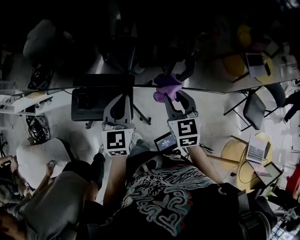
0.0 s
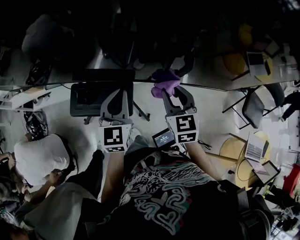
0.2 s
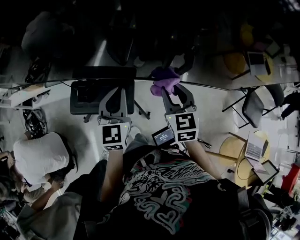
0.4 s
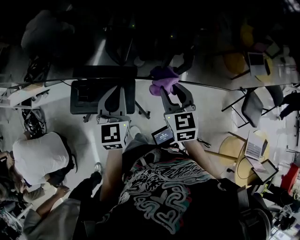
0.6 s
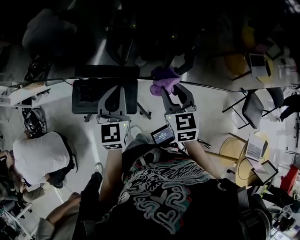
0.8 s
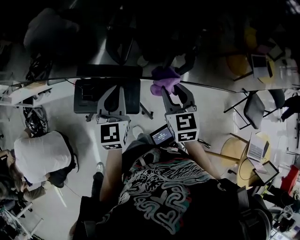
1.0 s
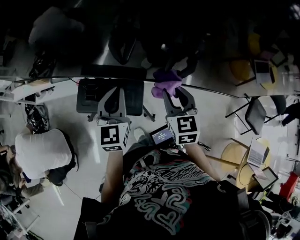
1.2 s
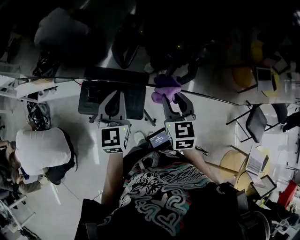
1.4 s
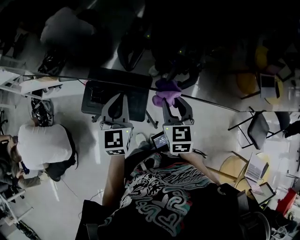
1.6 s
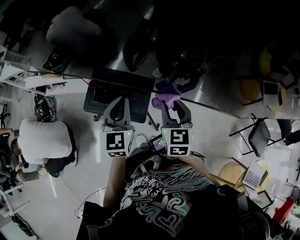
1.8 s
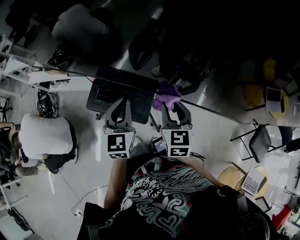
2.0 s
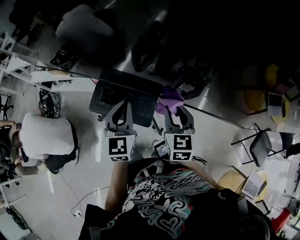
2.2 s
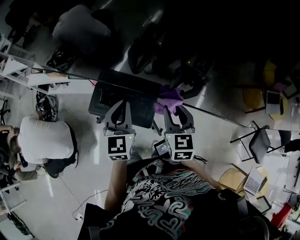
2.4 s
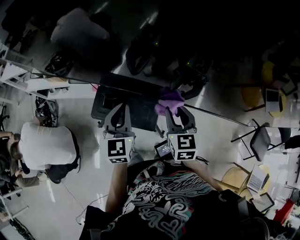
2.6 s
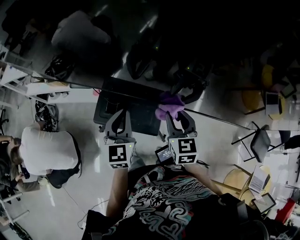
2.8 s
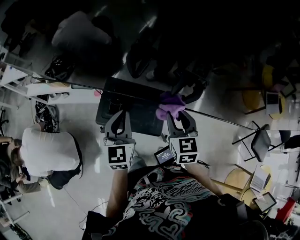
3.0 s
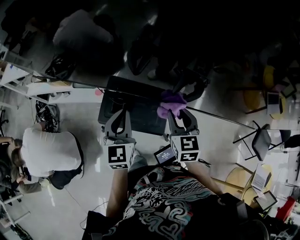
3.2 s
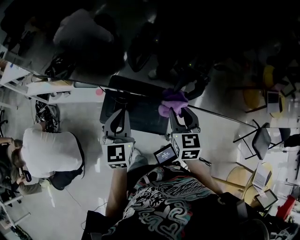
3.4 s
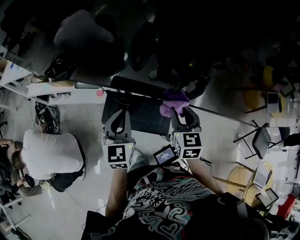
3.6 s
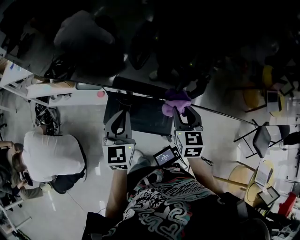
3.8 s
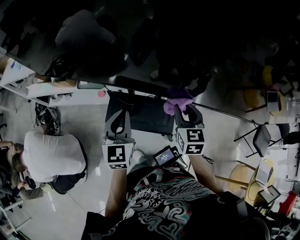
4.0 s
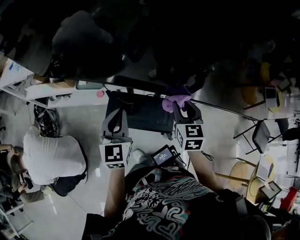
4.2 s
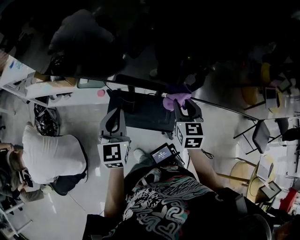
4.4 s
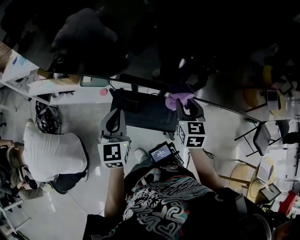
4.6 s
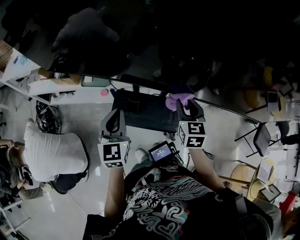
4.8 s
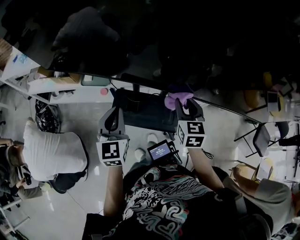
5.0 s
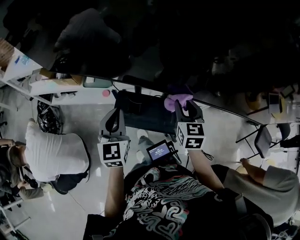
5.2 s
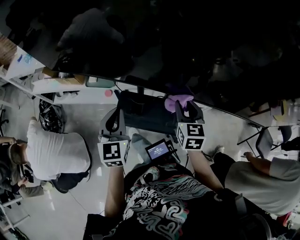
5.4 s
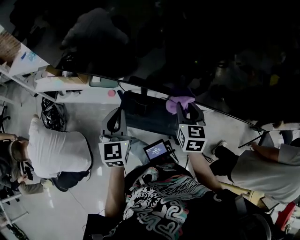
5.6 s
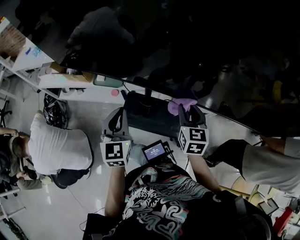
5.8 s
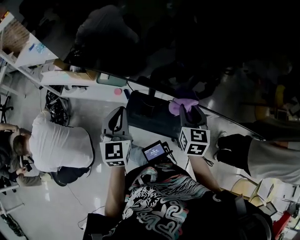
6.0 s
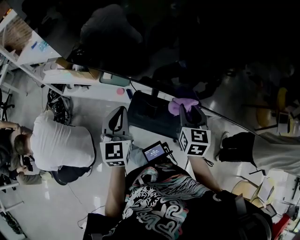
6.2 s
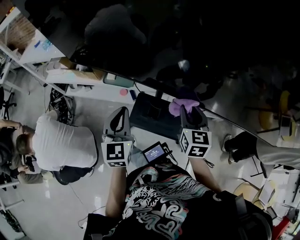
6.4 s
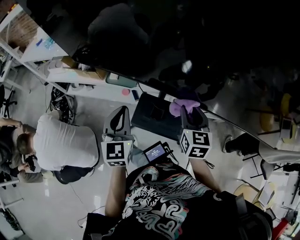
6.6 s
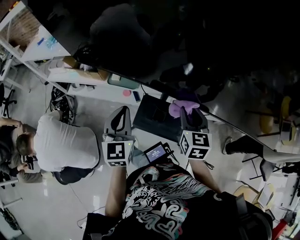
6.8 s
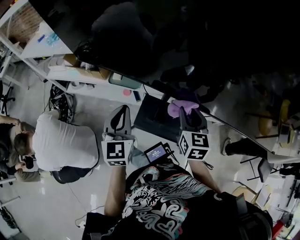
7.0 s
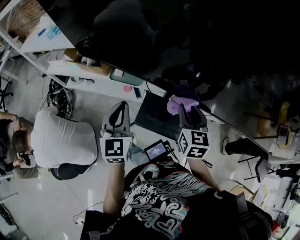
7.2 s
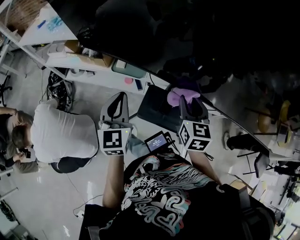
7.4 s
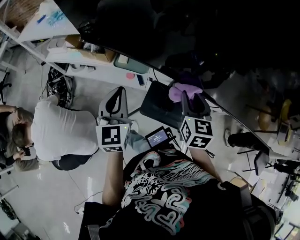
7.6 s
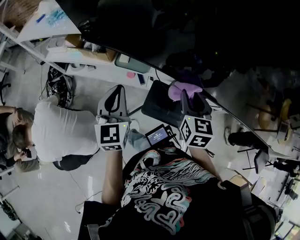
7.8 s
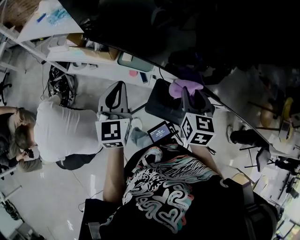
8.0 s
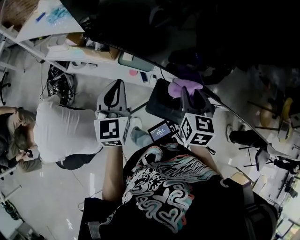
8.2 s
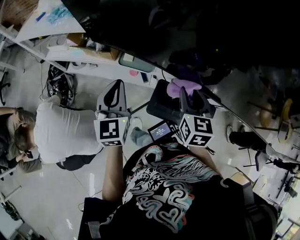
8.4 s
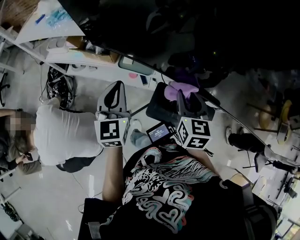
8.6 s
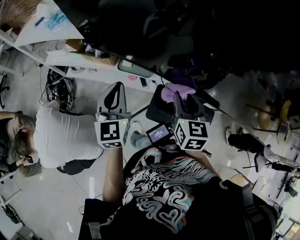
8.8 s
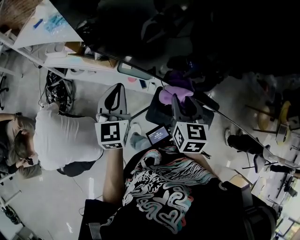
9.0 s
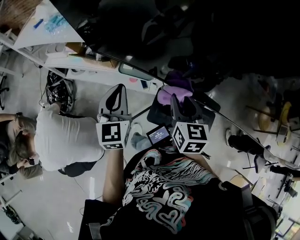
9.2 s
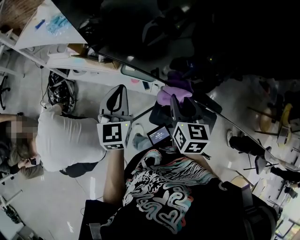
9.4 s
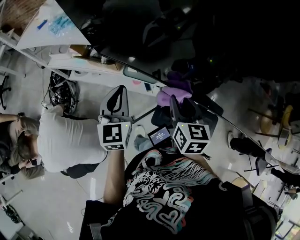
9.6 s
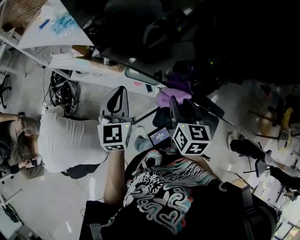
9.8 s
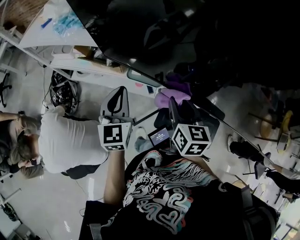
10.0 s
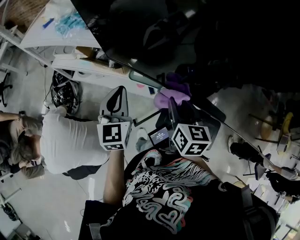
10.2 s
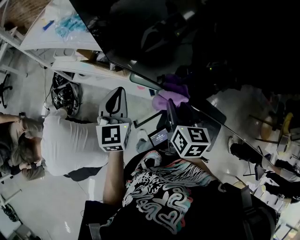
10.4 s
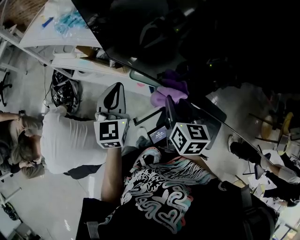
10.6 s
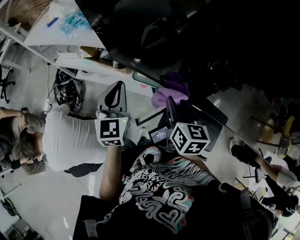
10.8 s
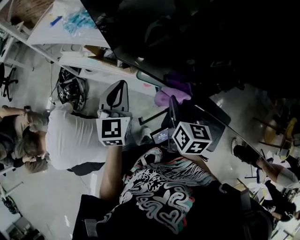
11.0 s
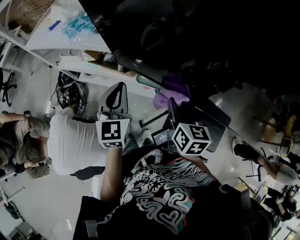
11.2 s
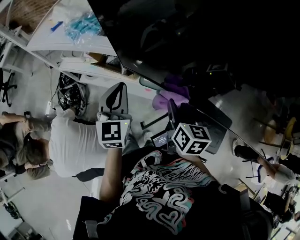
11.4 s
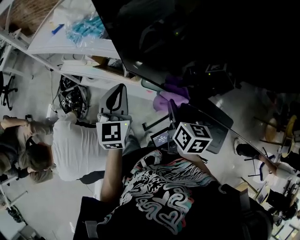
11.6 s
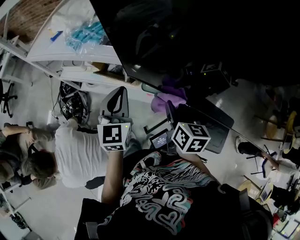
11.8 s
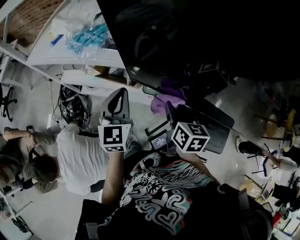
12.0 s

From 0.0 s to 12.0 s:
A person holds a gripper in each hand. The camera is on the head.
From 0.0 s to 1.6 s: Both grippers move to the left, about 10 cm.
From 1.6 s to 3.0 s: Both grippers move to the left, roughly 15 cm.
From 3.0 s to 4.4 s: The left gripper travels to the left by some 15 cm, while the right gripper is displaced to the left by roughly 10 cm.
From 4.4 s to 6.0 s: Both grippers travel together to the left, roughly 10 cm.
From 6.0 s to 7.6 s: Both grippers travel together to the left, about 15 cm.
From 7.6 s to 9.0 s: The left gripper is displaced forward and to the left by some 10 cm. The right gripper heads to the left, covering approximately 10 cm.
From 9.0 s to 10.4 s: The grippers both shift to the left and forward by roughly 10 cm.
From 10.4 s to 12.0 s: Both grippers move to the left and forward, approximately 10 cm.

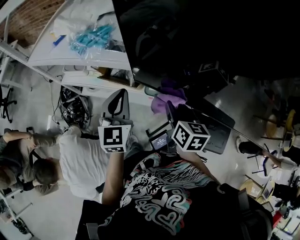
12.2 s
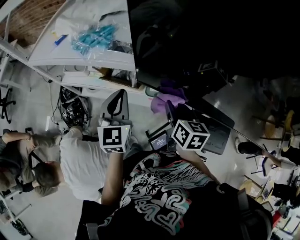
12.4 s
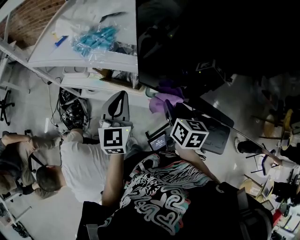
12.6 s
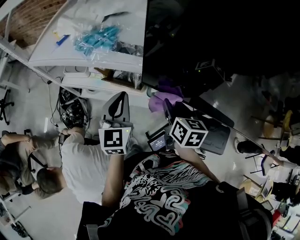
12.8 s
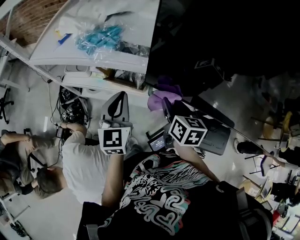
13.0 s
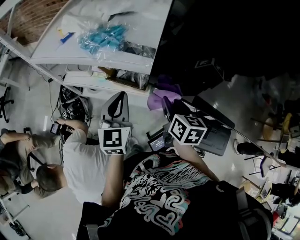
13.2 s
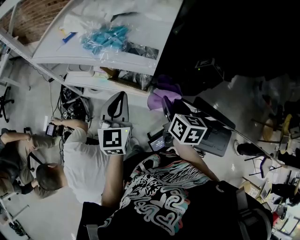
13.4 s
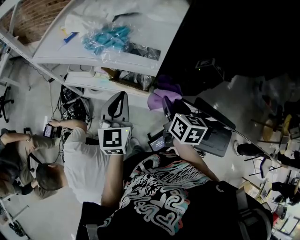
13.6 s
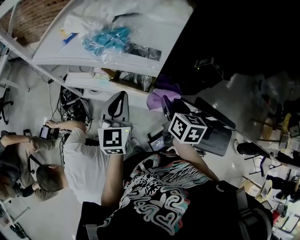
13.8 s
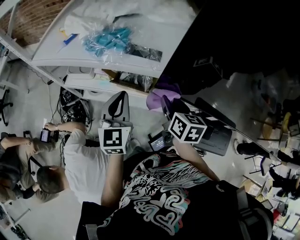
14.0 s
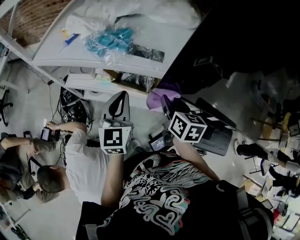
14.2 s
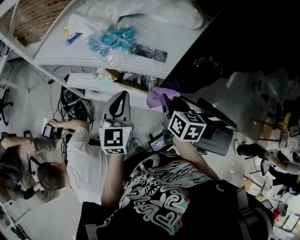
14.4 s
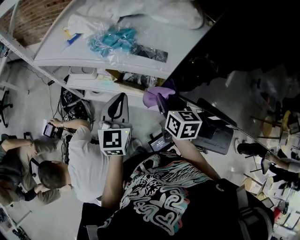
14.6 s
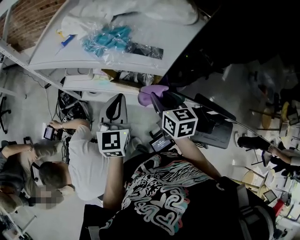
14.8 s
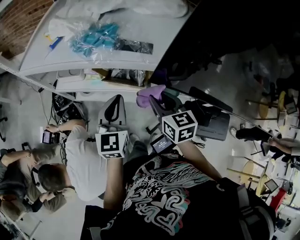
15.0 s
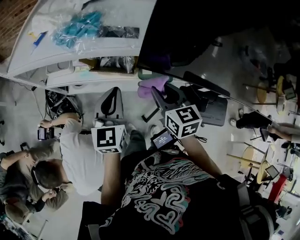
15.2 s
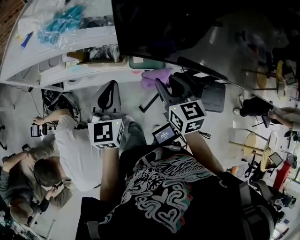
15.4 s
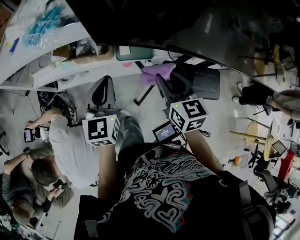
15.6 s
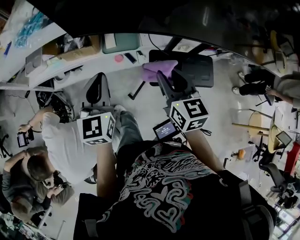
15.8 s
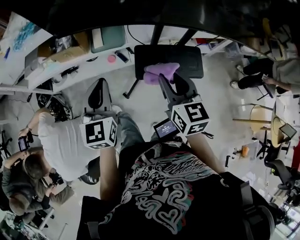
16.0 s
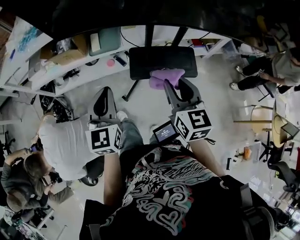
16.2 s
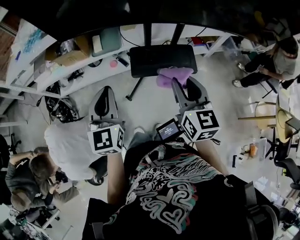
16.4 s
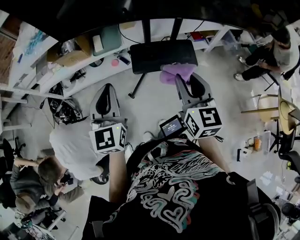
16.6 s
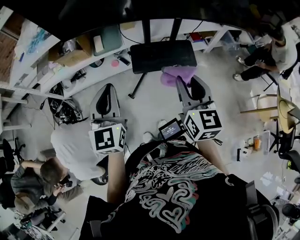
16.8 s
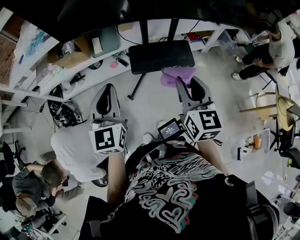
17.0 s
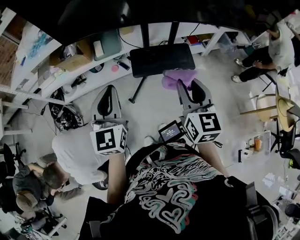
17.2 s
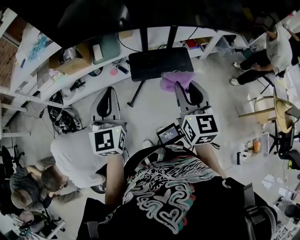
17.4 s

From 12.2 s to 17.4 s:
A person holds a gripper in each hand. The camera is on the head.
From 12.2 s to 14.0 s: Both grippers travel together to the left, roughly 10 cm.
From 14.0 s to 15.6 s: The right gripper shifts approximately 20 cm backward and to the right, while the left gripper travels to the right and backward by about 15 cm.
From 15.6 s to 17.4 s: The two grippers travel together, backward and to the right, approximately 40 cm. The right gripper swivels about 20 degrees.

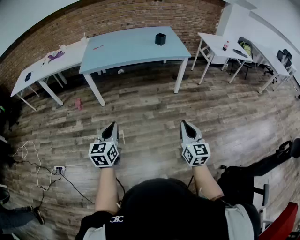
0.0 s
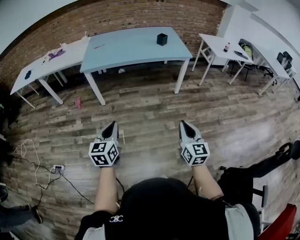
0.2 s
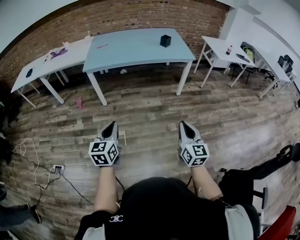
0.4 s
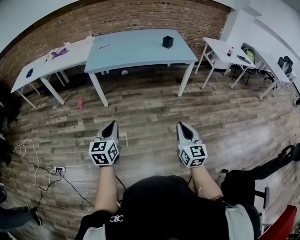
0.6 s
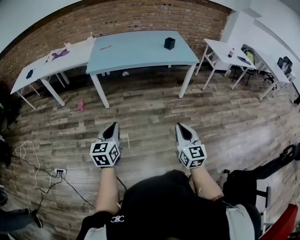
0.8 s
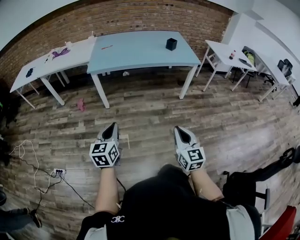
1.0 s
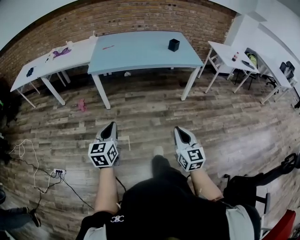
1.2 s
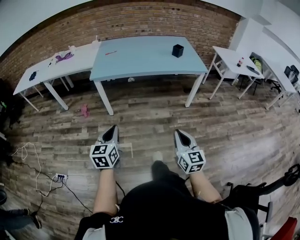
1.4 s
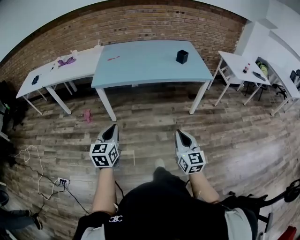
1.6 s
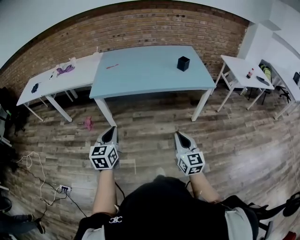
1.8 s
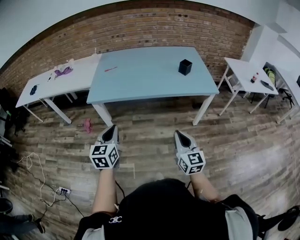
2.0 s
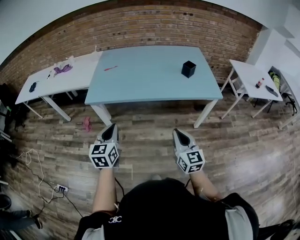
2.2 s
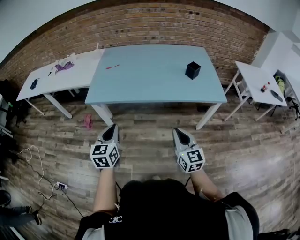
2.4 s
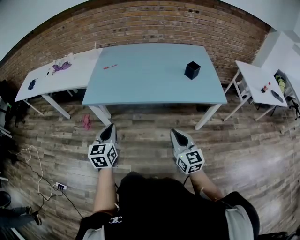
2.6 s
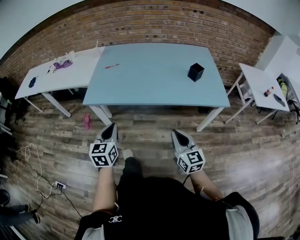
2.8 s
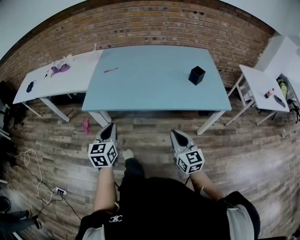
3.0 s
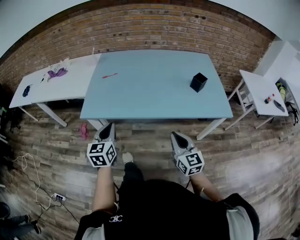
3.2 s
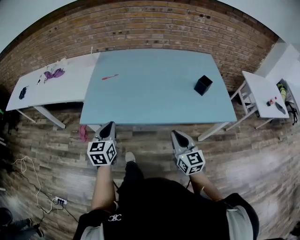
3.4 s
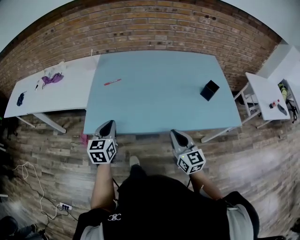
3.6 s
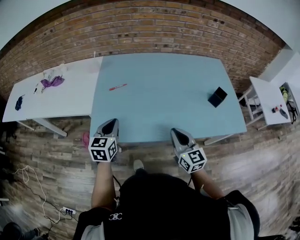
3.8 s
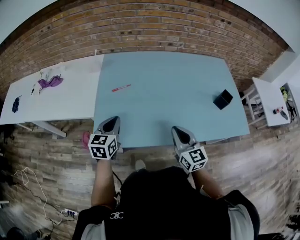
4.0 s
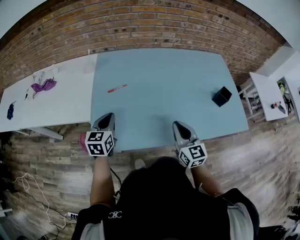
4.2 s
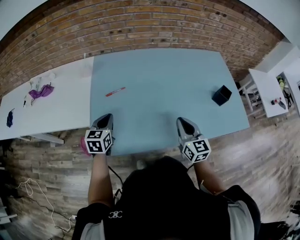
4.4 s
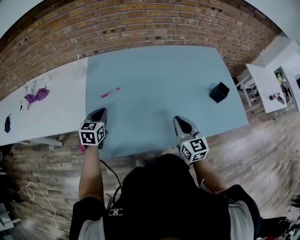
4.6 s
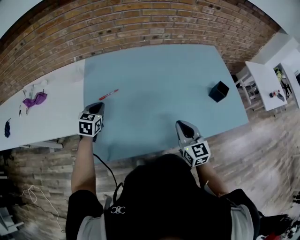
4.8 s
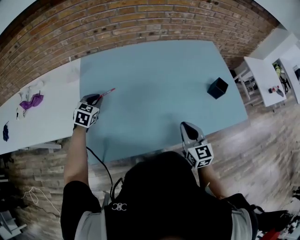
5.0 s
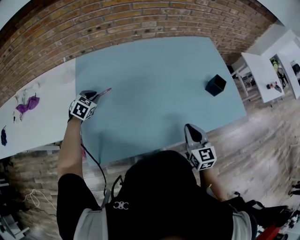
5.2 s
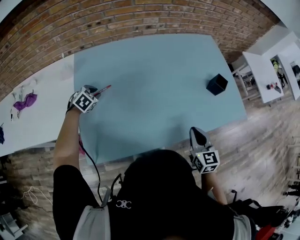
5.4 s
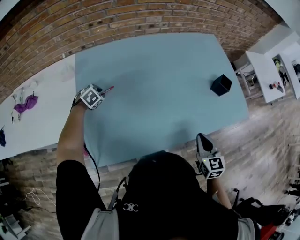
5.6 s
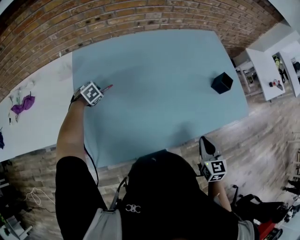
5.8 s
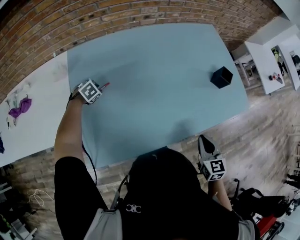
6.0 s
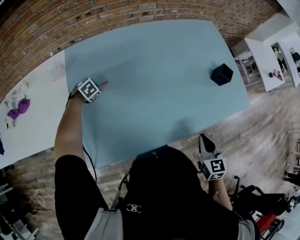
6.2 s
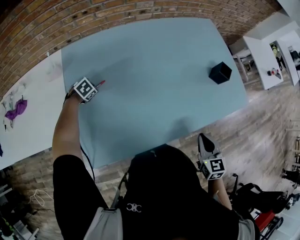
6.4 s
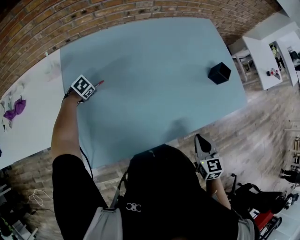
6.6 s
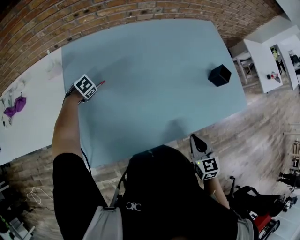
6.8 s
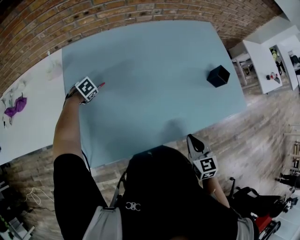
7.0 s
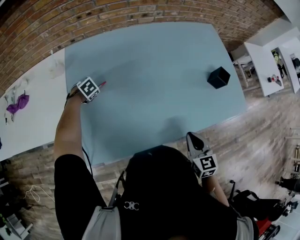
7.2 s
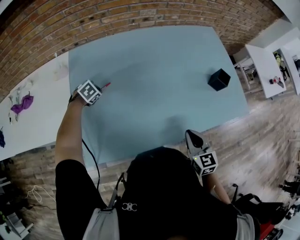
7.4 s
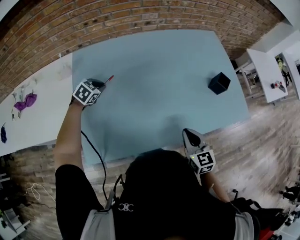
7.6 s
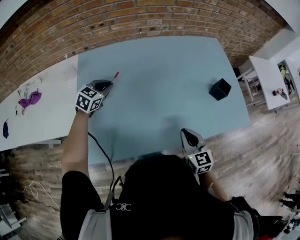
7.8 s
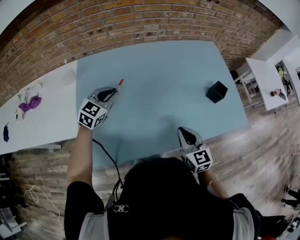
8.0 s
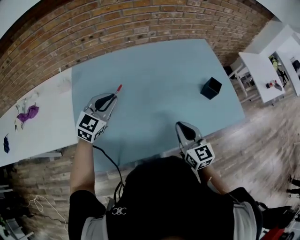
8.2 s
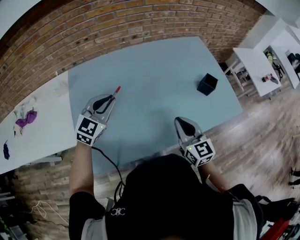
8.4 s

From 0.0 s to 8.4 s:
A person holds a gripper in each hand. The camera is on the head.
From 0.0 s to 1.4 s: The left gripper travels forward and to the left by some 15 cm. The right gripper is displaced to the left and forward by about 15 cm.
From 1.4 s to 2.8 s: The two grippers go about 35 cm forward.
From 2.8 s to 4.2 s: The left gripper goes about 40 cm forward. Meanwhile the right gripper travels forward and to the left by approximately 40 cm.
From 4.2 s to 5.6 s: The left gripper heads forward and downward, covering approximately 25 cm, tips its fingers downward by some 40 degrees, and opens its fingers. The right gripper travels to the right by some 15 cm, and swivels roughly 30 degrees.
From 5.6 s to 7.0 s: The left gripper shifts about 5 cm downward.
From 7.0 s to 8.4 s: The right gripper is displaced upward by about 10 cm, and turns by some 20 degrees, while the left gripper goes approximately 30 cm upward, and tips its fingers upward by roughly 60 degrees.
